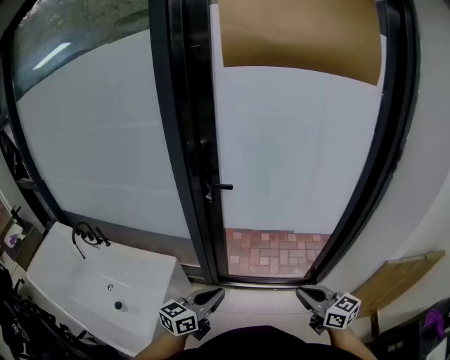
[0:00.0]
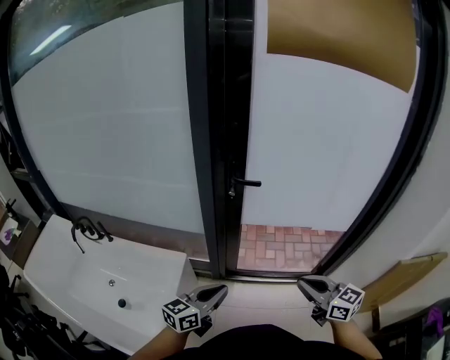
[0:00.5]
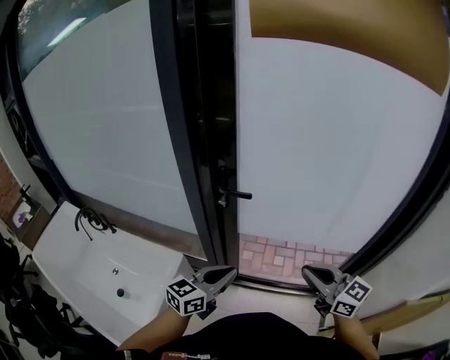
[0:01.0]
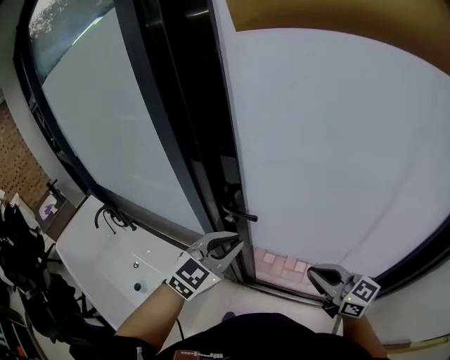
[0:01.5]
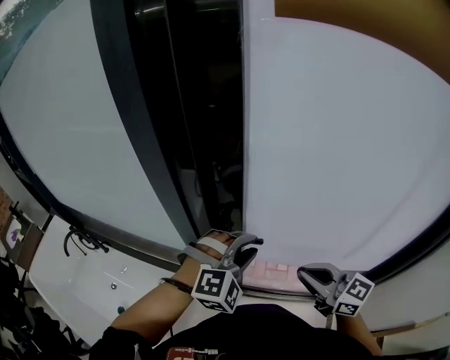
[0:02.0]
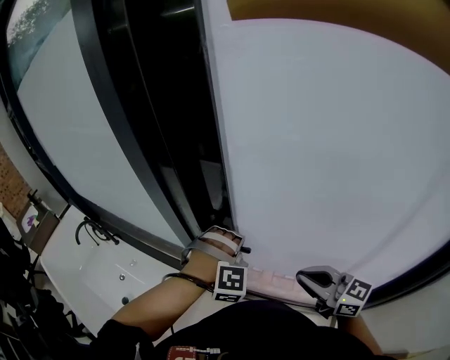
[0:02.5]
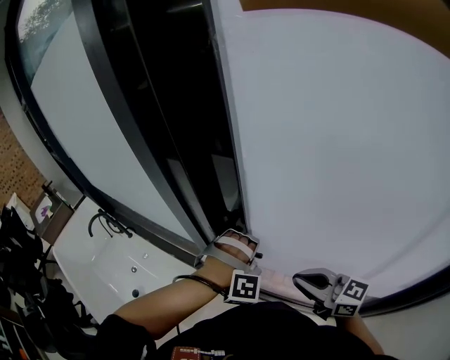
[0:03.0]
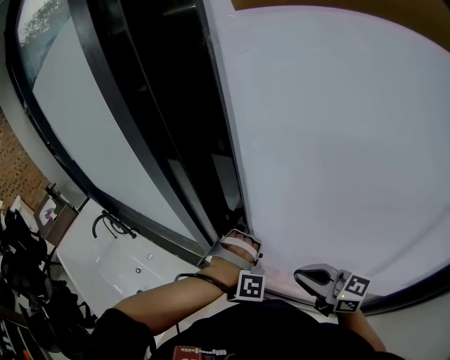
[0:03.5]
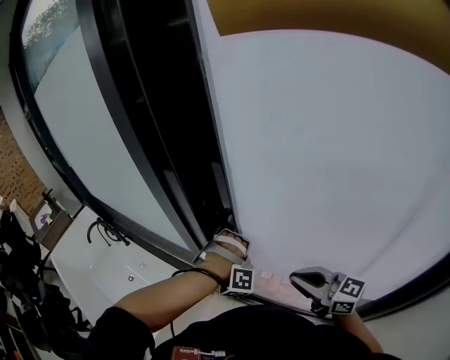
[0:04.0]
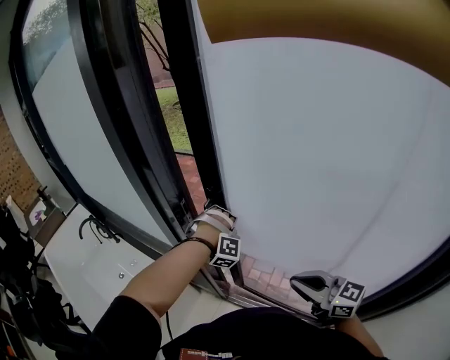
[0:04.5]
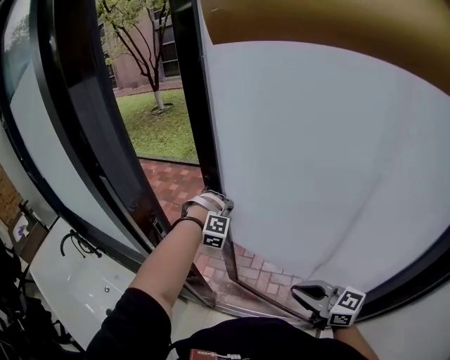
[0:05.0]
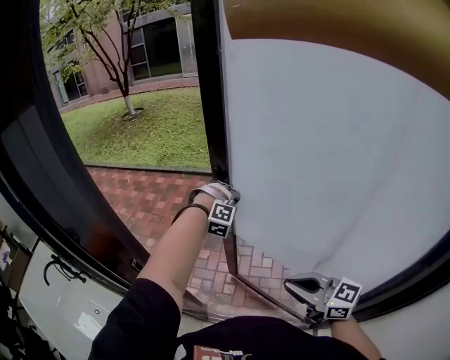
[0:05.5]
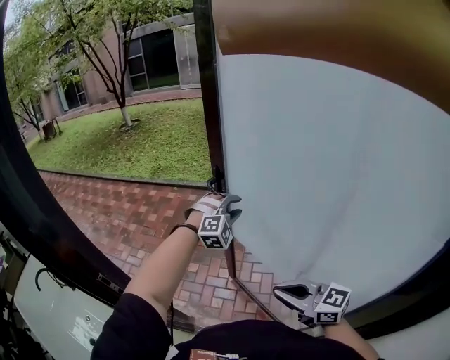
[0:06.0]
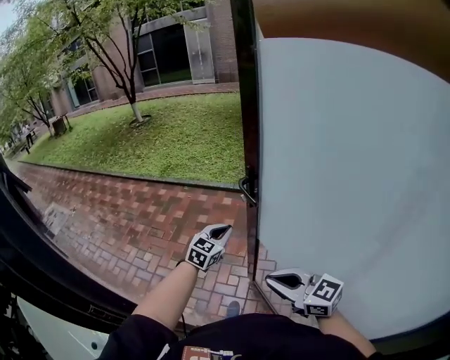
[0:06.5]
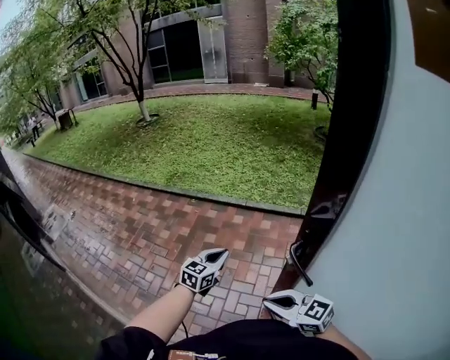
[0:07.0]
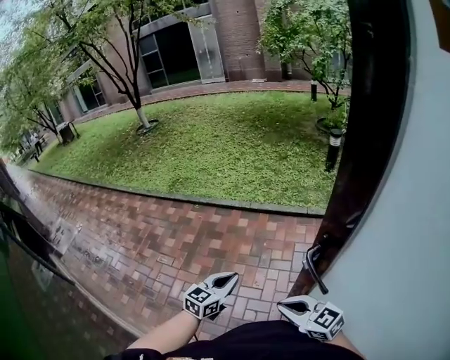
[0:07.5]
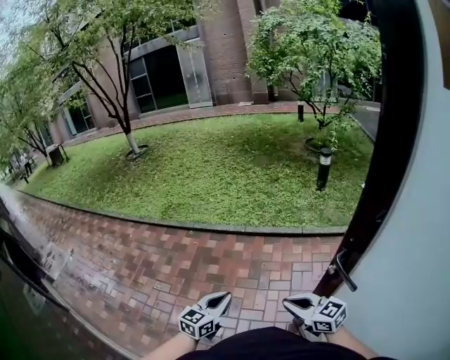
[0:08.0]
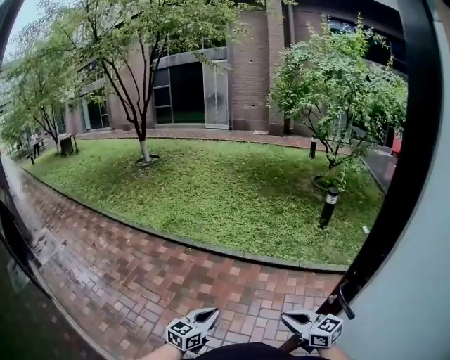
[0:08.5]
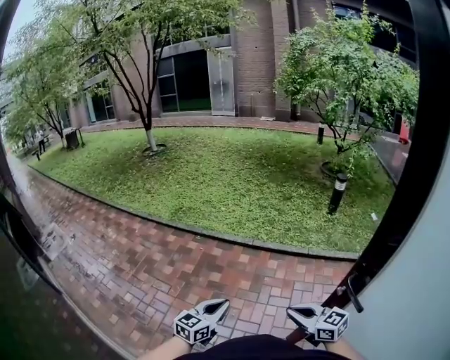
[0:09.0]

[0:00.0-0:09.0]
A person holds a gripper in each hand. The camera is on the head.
0:00.0 to 0:02.0: Both grippers travel together forward, about 35 cm. The left gripper twists approximately 80 degrees clockwise, seen from behind, and opens its fingers.
0:02.0 to 0:04.5: The left gripper moves about 20 cm, changes its angle by roughly 50 degrees, and closes its fingers; the right gripper changes place by about 10 cm.
0:04.5 to 0:07.0: Both grippers are carried approximately 50 cm. The left gripper rolls counterclockwise, seen from behind, by roughly 100 degrees, and opens, then closes once more.
0:07.0 to 0:09.0: The right gripper is displaced forward by about 15 cm.

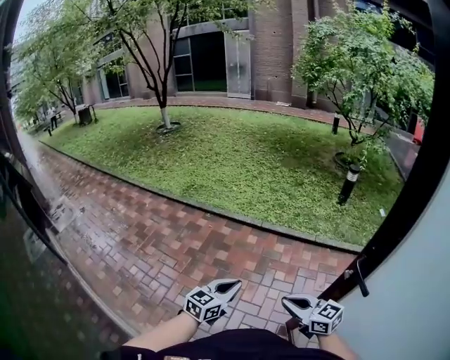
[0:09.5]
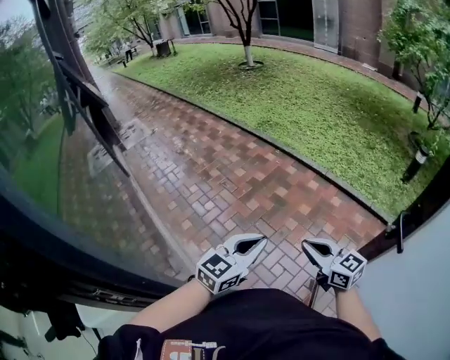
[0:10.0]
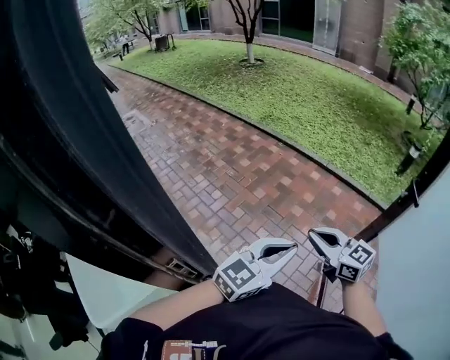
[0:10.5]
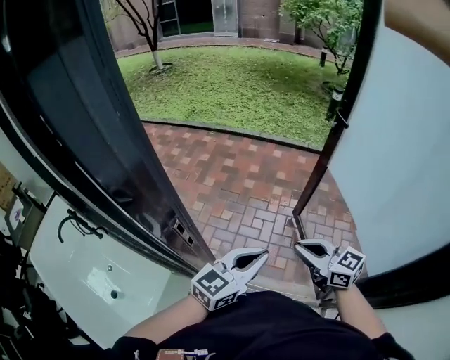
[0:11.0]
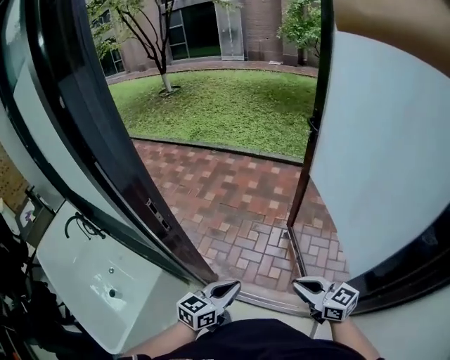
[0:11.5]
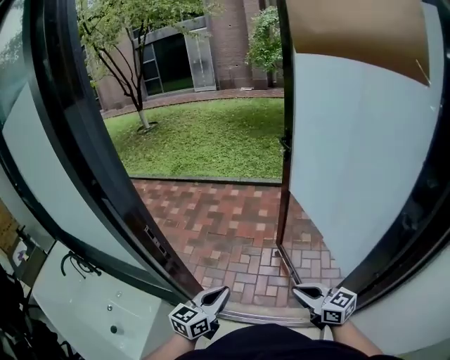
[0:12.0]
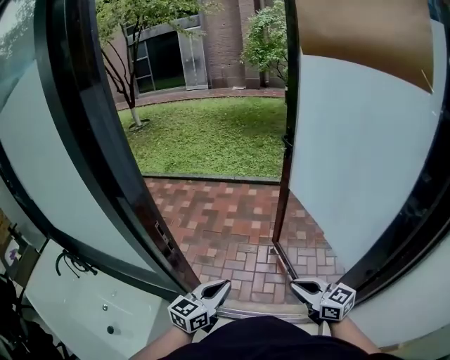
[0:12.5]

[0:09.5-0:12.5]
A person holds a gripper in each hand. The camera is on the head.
0:09.5 to 0:11.0: The two grippers travel together, backward, roughly 50 cm.
0:11.0 to 0:12.5: The right gripper shifts approximately 20 cm backward and to the right. The left gripper travels backward by approximately 10 cm.

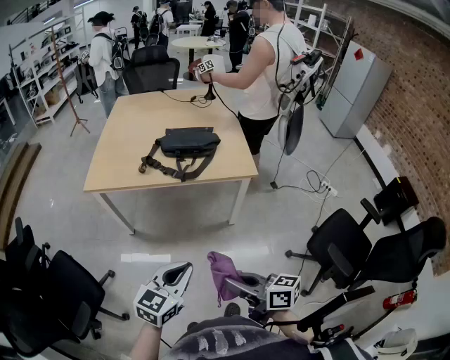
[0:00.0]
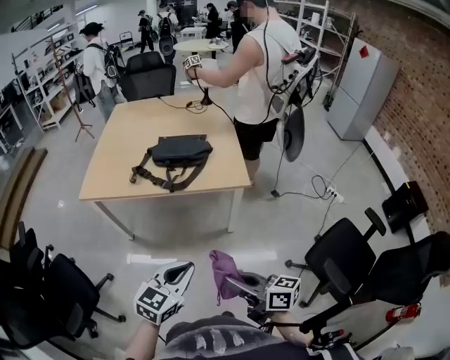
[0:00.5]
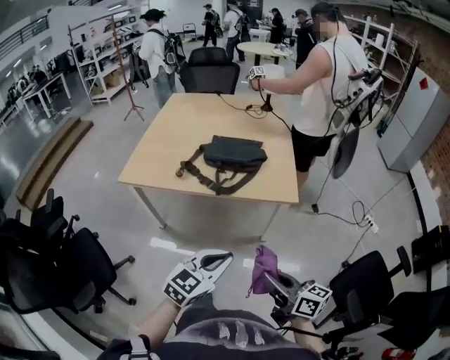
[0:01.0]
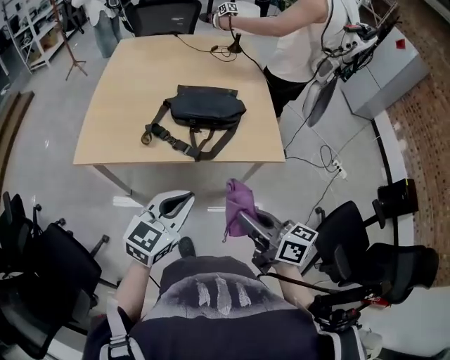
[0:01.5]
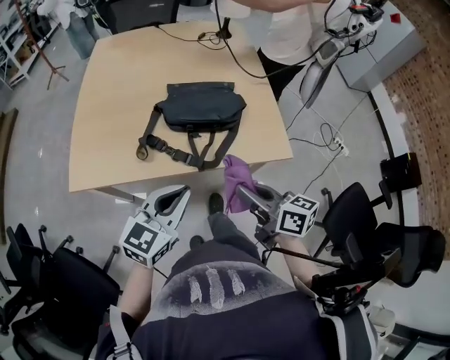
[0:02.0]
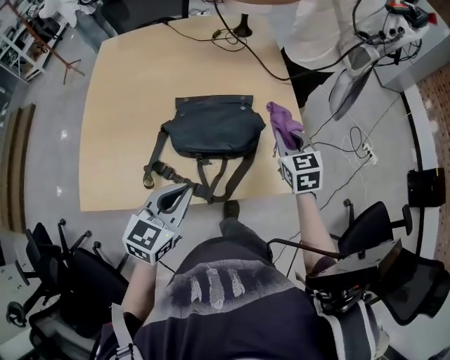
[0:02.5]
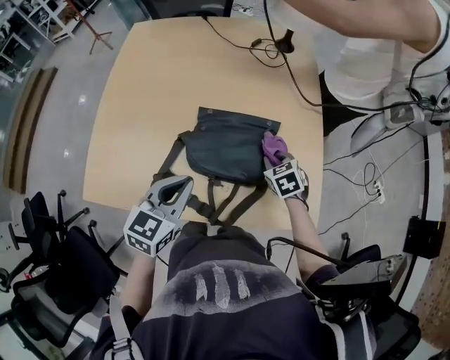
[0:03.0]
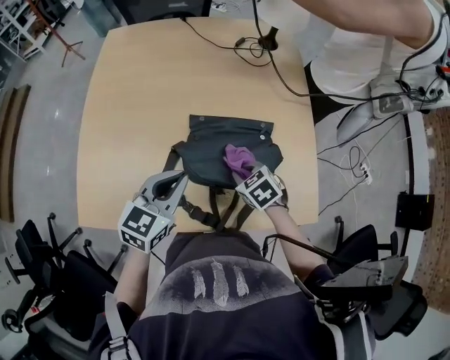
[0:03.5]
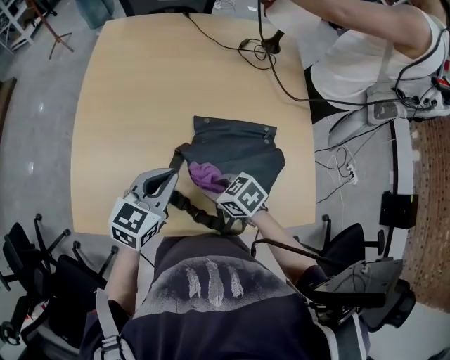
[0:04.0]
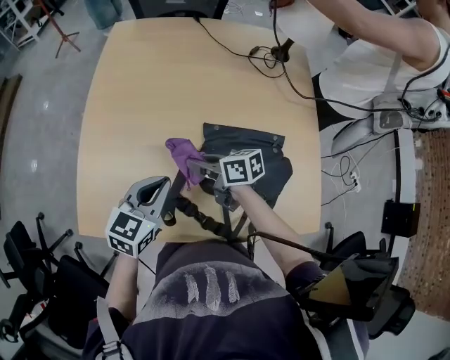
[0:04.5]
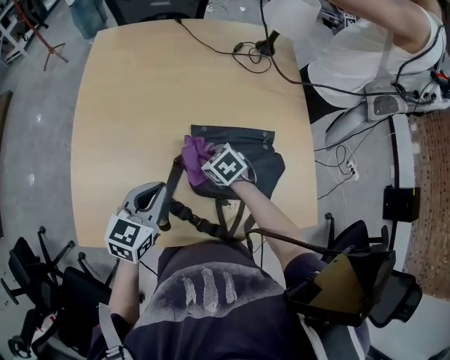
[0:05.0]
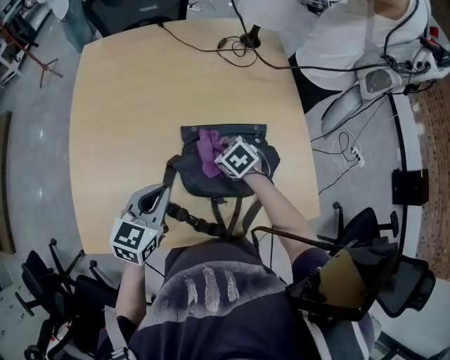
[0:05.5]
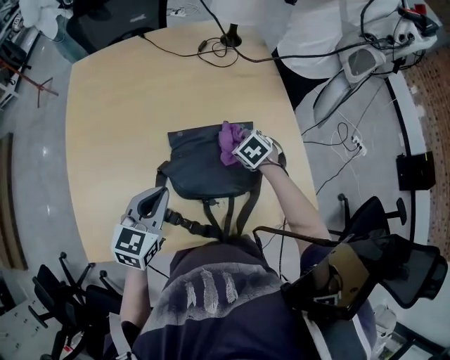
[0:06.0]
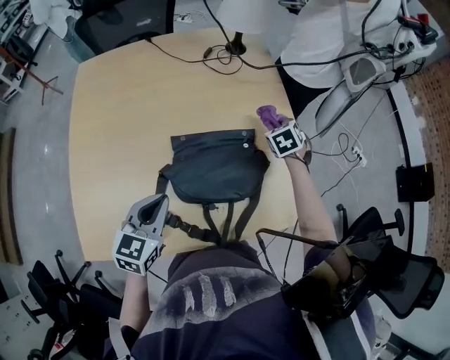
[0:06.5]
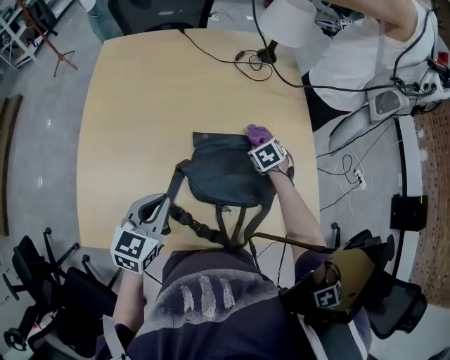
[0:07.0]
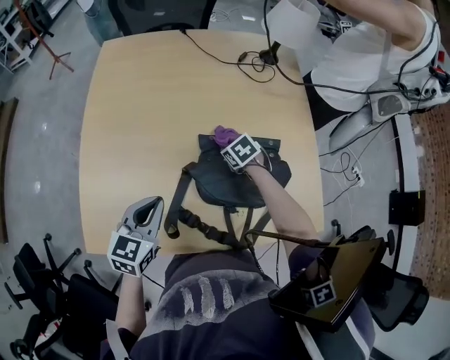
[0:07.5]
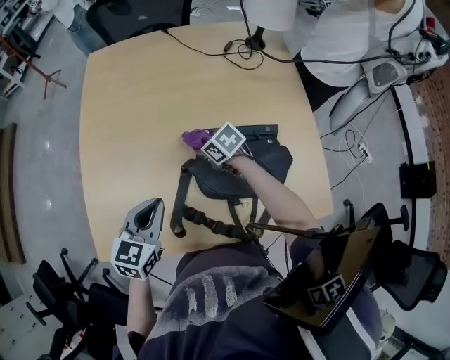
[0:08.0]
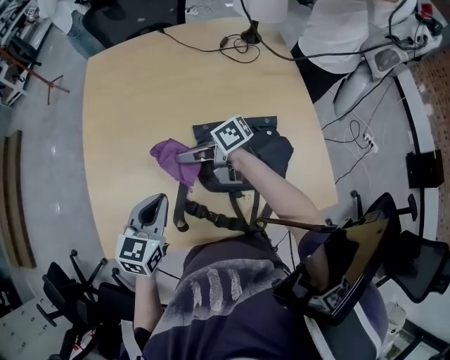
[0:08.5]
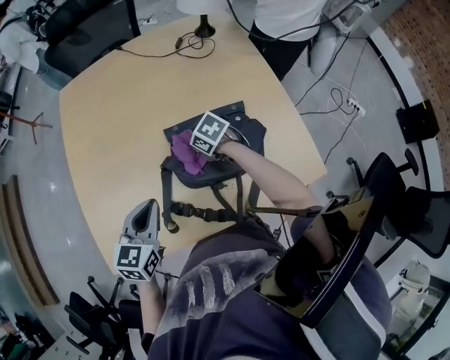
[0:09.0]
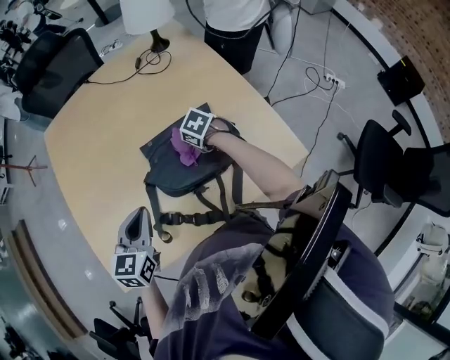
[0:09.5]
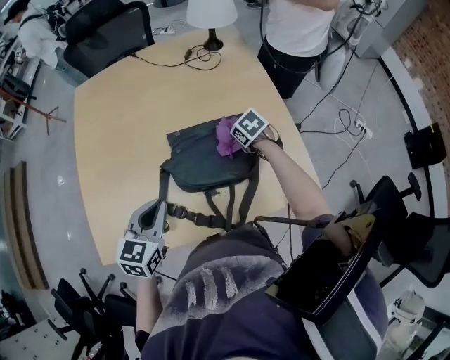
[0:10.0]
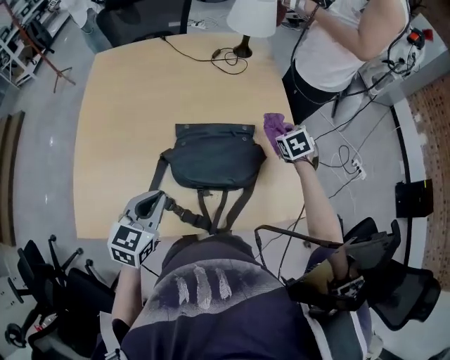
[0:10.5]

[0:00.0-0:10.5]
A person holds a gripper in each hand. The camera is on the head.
0:00.0 to 0:02.0: Both grippers move forward, some 40 cm.
0:02.0 to 0:04.0: The right gripper shifts by approximately 35 cm, and angles its fingers downward, by some 40 degrees; the left gripper ends up roughly 35 cm from where it was.
0:04.0 to 0:06.5: The right gripper reaches roughly 5 cm downward, then returns, and changes its angle by about 50 degrees.
0:06.5 to 0:08.5: The right gripper moves some 10 cm downward and comes back, and angles its fingers upward, by some 50 degrees; the left gripper shifts by about 10 cm.
0:08.5 to 0:10.5: The left gripper changes place by some 10 cm; the right gripper moves approximately 40 cm, and points its fingers roughly 50 degrees further downward.

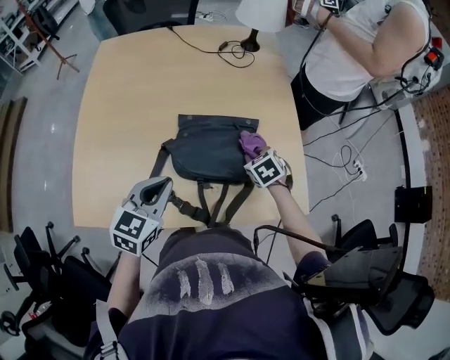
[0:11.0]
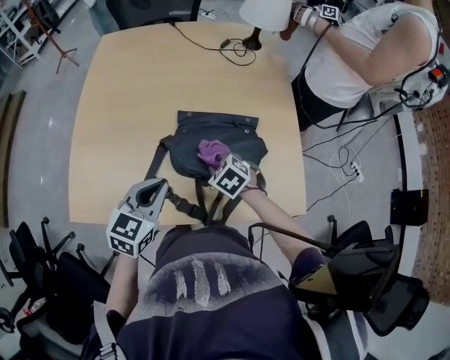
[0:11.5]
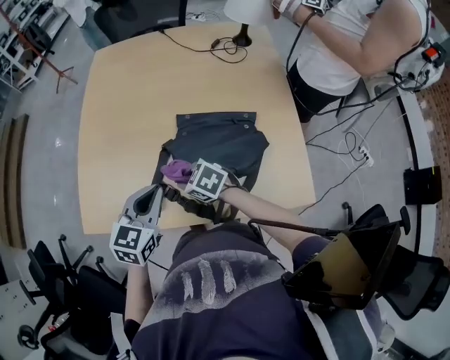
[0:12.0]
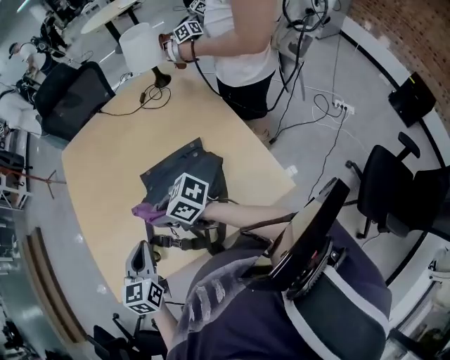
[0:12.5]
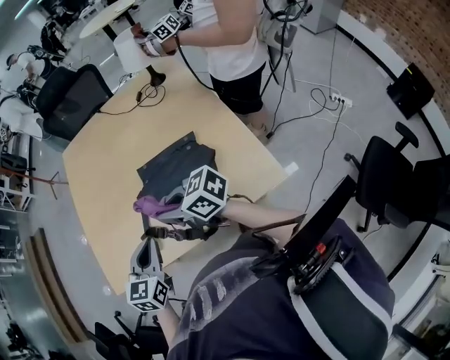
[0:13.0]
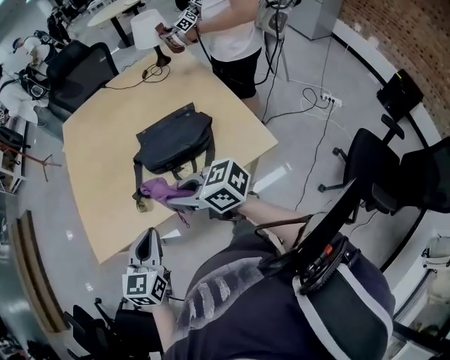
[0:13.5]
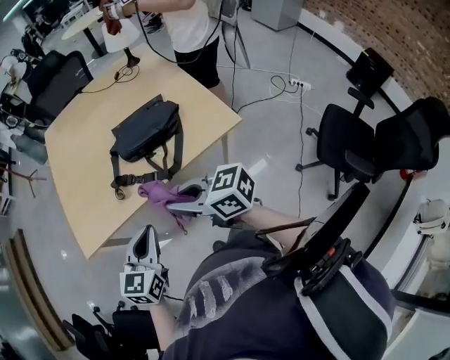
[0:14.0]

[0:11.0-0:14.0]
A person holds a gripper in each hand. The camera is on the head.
0:11.0 to 0:12.5: The right gripper shifts by about 25 cm, and angles its fingers upward, by approximately 40 degrees.
0:12.5 to 0:14.0: Both grippers move backward, roughly 30 cm. The right gripper turns by about 20 degrees.
